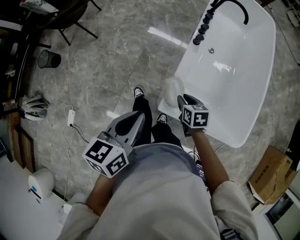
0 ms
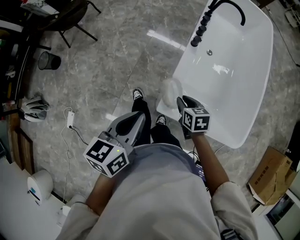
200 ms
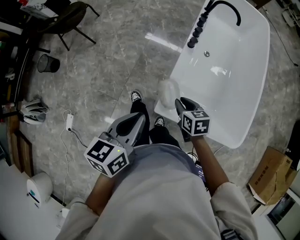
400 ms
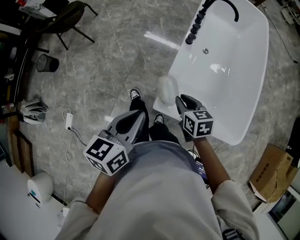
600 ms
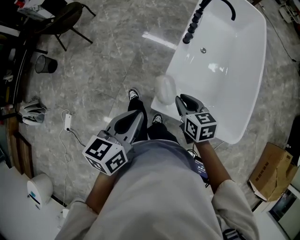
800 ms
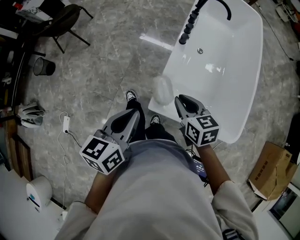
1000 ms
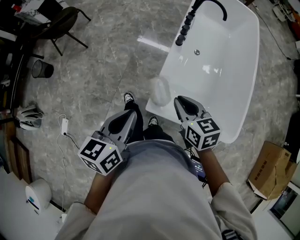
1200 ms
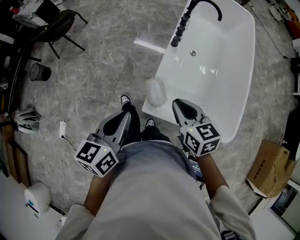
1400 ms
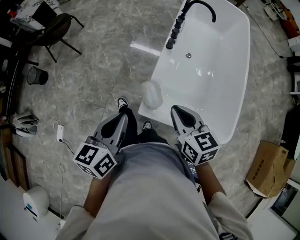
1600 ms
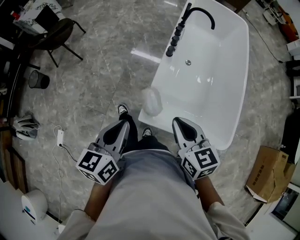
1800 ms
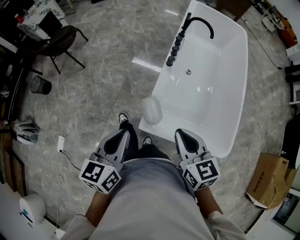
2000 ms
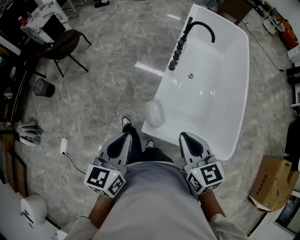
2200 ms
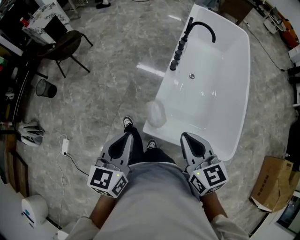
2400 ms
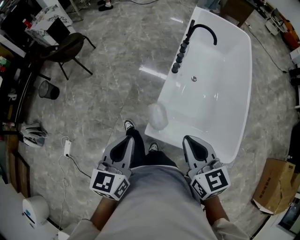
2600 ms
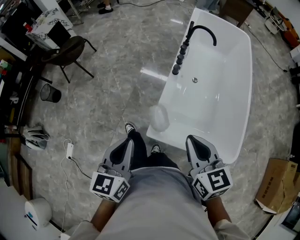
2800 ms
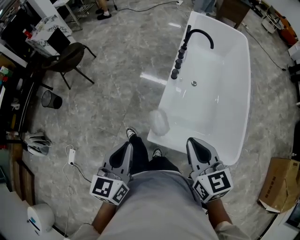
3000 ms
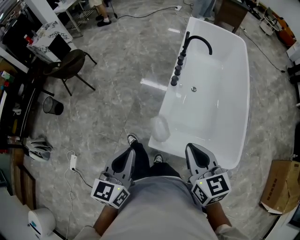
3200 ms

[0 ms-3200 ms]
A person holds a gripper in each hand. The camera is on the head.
0 ms to 1600 ms: The right gripper moves upward, approximately 20 cm, and swivels approximately 20 degrees.
1600 ms to 3200 ms: The left gripper shifts roughly 5 cm upward; the right gripper goes some 10 cm upward.

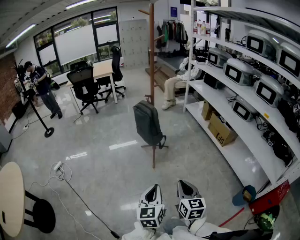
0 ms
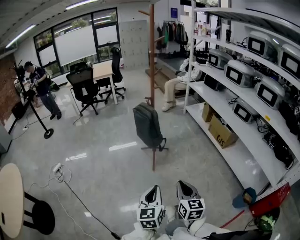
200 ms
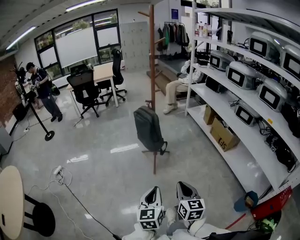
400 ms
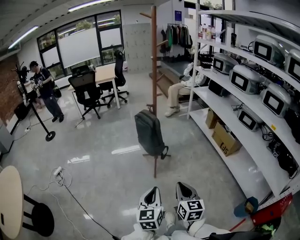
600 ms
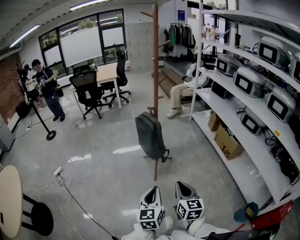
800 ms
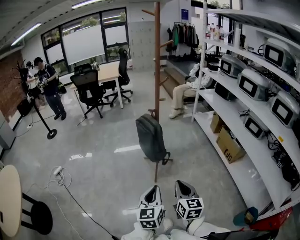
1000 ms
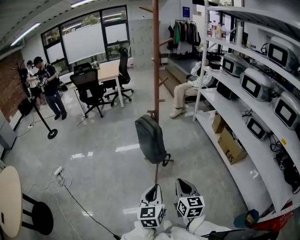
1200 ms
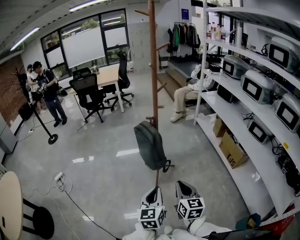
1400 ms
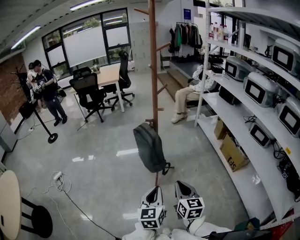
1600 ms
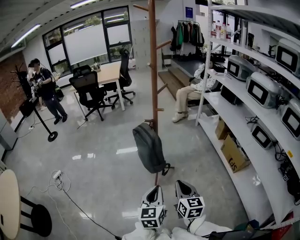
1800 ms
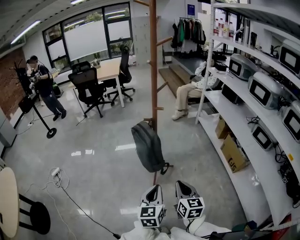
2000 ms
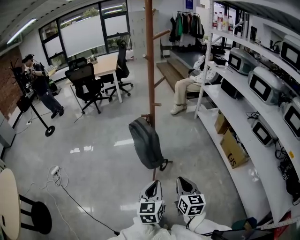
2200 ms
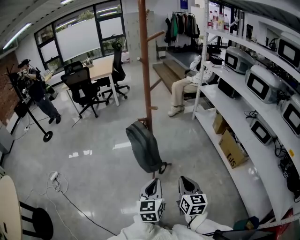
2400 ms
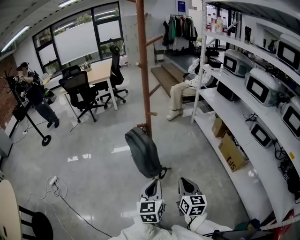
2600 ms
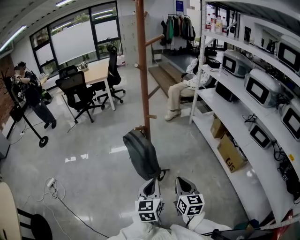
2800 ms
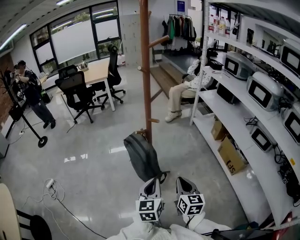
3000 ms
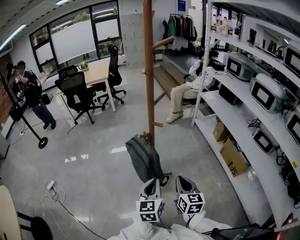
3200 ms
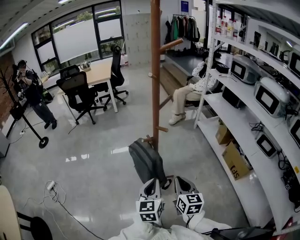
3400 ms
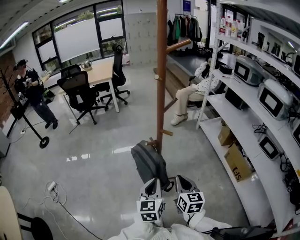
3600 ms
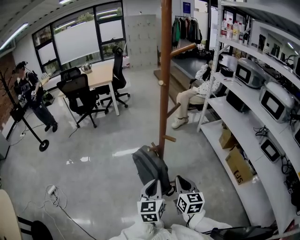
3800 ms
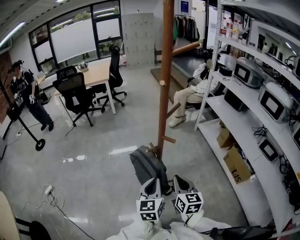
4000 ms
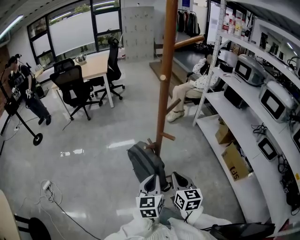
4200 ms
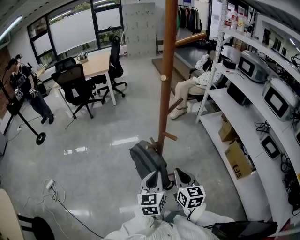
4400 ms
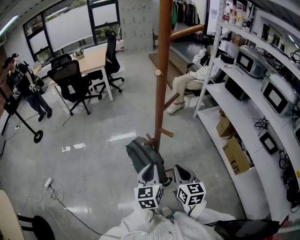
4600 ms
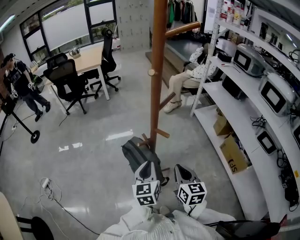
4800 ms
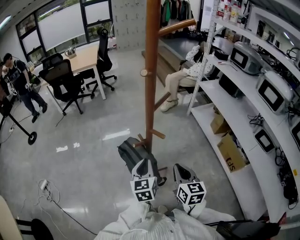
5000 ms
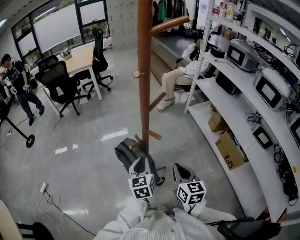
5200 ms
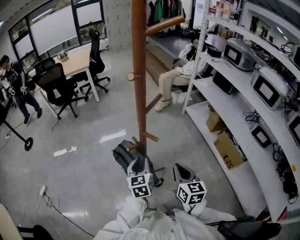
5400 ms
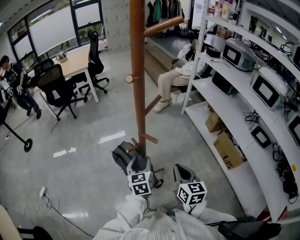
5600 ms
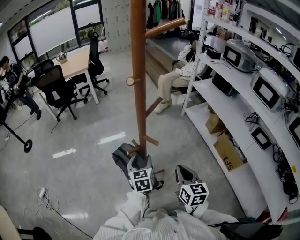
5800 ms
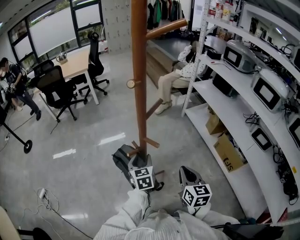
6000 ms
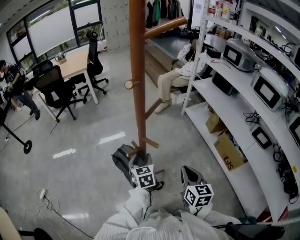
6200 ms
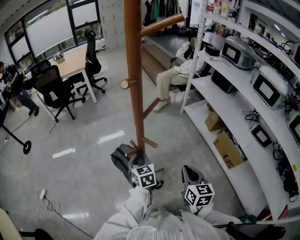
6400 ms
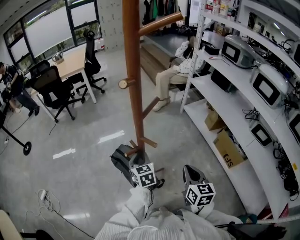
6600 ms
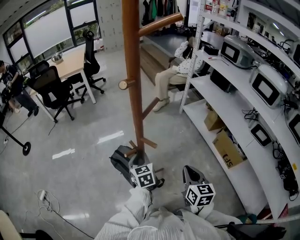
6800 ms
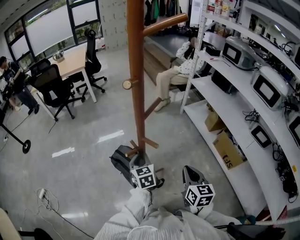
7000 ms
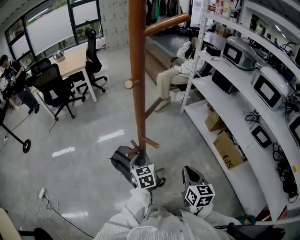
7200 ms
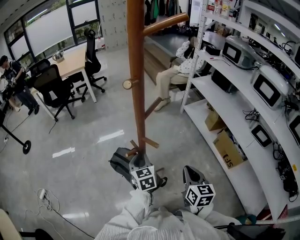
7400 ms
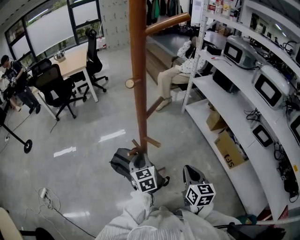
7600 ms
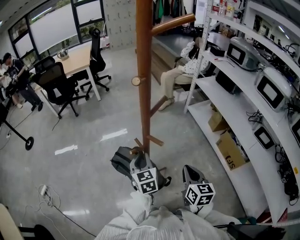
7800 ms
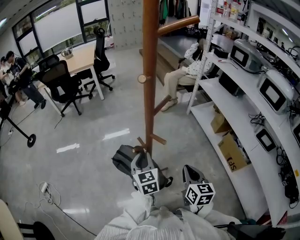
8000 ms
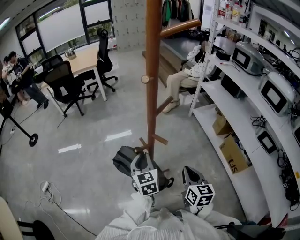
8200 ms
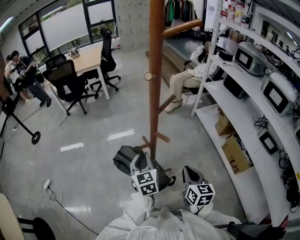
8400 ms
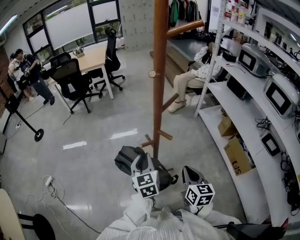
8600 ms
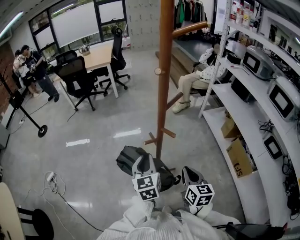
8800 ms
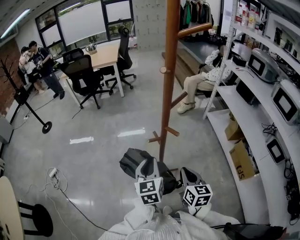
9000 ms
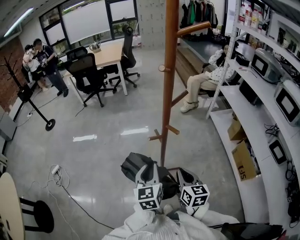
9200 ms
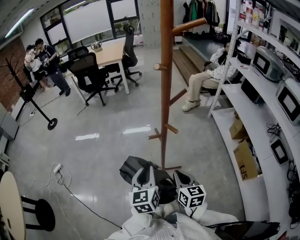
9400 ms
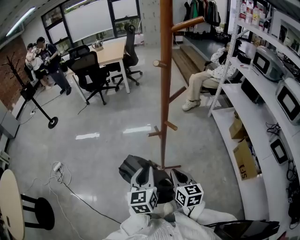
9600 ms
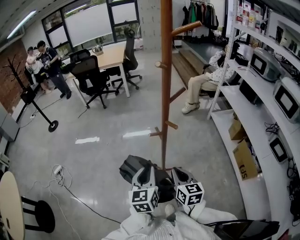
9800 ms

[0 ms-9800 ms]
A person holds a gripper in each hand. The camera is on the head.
0 ms to 1400 ms: Both grippers move forward, about 25 cm.
1400 ms to 2800 ms: Both grippers move forward, about 15 cm.
2800 ms to 4200 ms: The left gripper heads forward, covering some 15 cm, while the right gripper goes about 15 cm forward and to the left.
4200 ms to 5600 ms: The left gripper is displaced forward by about 10 cm, and opens its fingers. The right gripper shifts about 5 cm to the right.
5600 ms to 7000 ms: The left gripper ends up approximately 5 cm from where it was, and closes.
7000 ms to 8400 ms: The left gripper travels upward by roughly 5 cm.
8400 ms to 9800 ms: The left gripper shifts about 15 cm backward. The right gripper moves to the left, approximately 10 cm.

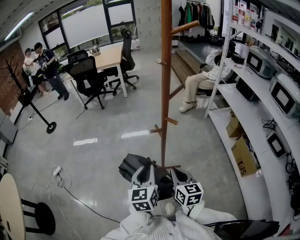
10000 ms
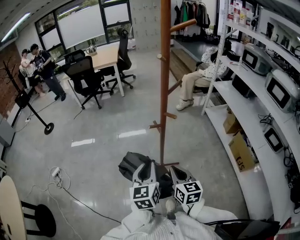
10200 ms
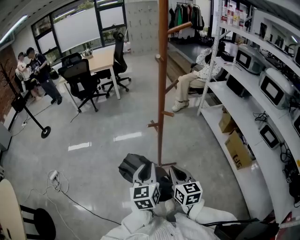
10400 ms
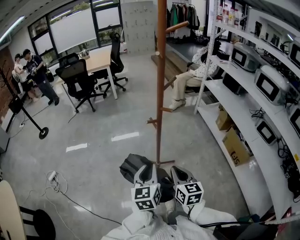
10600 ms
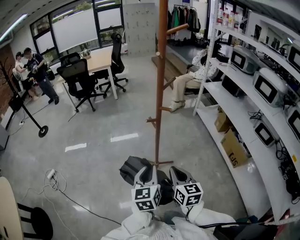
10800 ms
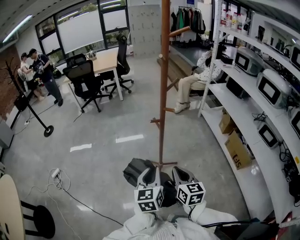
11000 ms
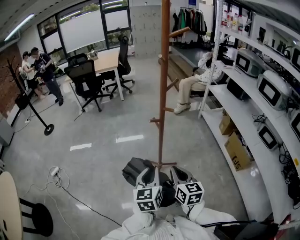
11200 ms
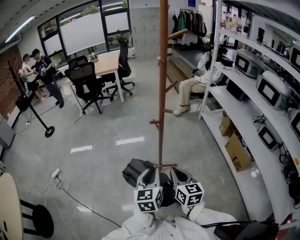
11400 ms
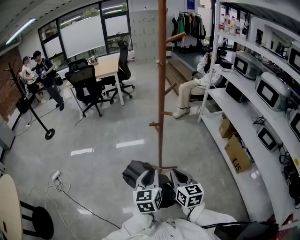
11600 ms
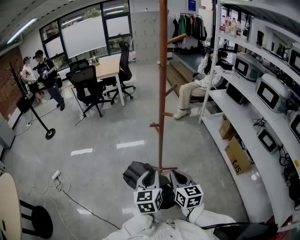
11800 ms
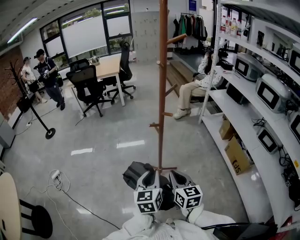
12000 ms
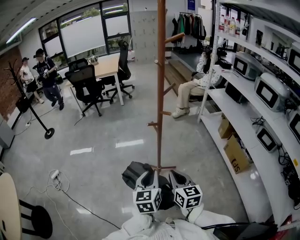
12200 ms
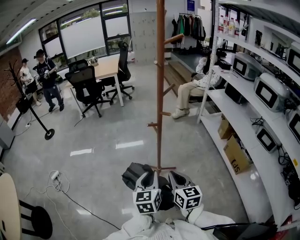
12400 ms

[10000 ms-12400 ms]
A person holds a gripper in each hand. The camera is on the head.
10000 ms to 11200 ms: The grippers both shift backward by approximately 10 cm.
11200 ms to 12400 ms: The grippers move only a little.

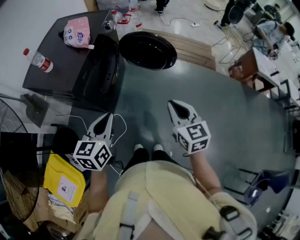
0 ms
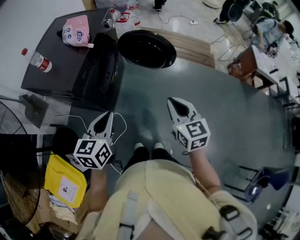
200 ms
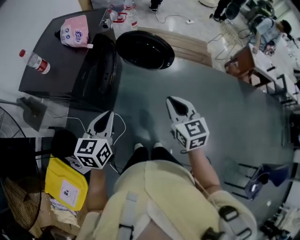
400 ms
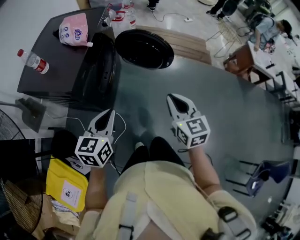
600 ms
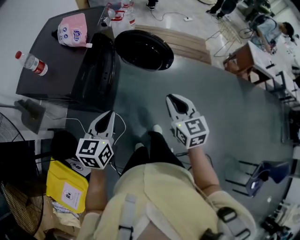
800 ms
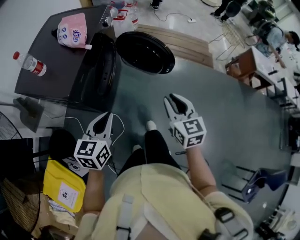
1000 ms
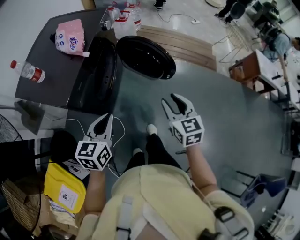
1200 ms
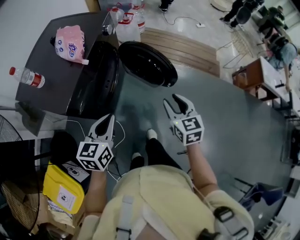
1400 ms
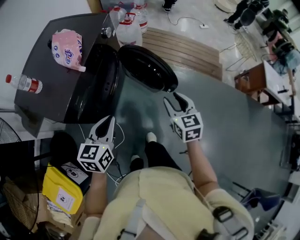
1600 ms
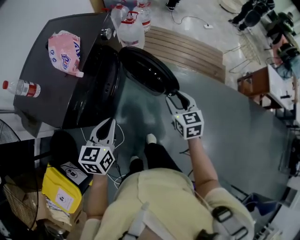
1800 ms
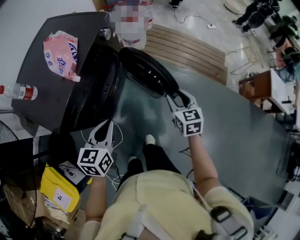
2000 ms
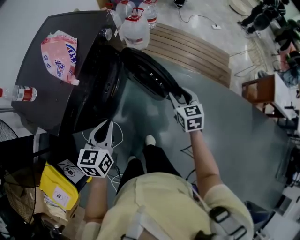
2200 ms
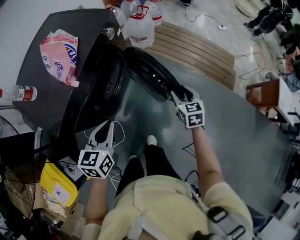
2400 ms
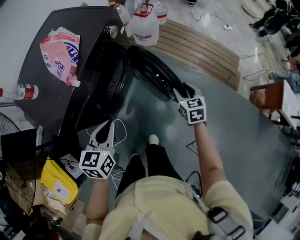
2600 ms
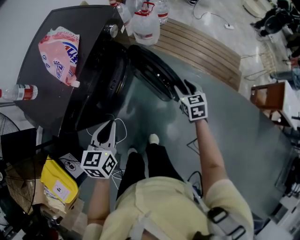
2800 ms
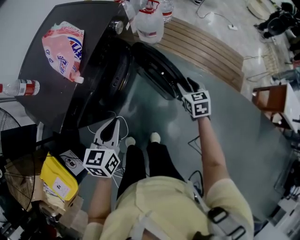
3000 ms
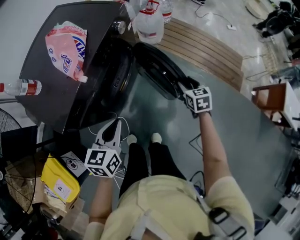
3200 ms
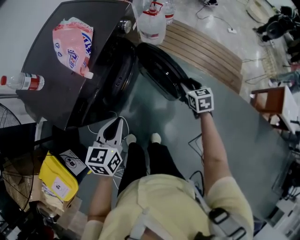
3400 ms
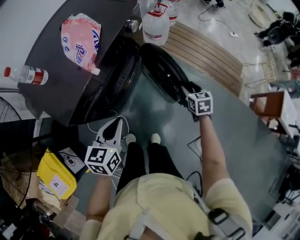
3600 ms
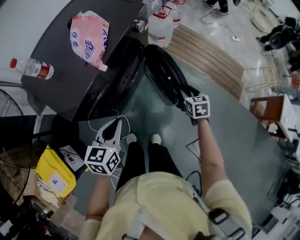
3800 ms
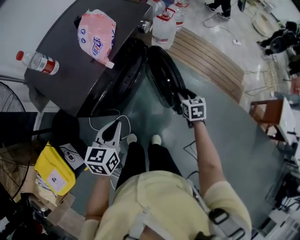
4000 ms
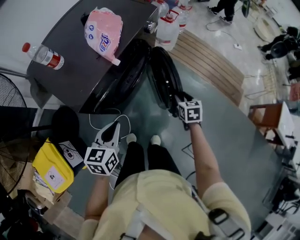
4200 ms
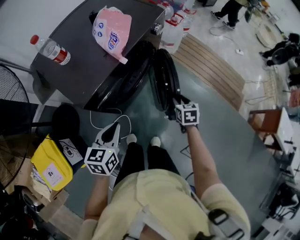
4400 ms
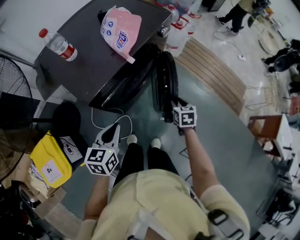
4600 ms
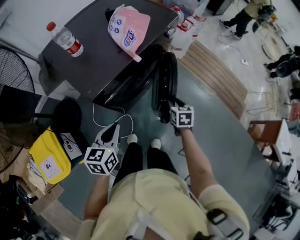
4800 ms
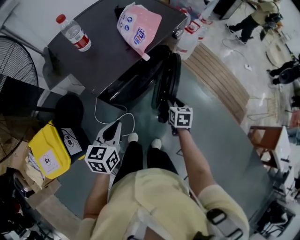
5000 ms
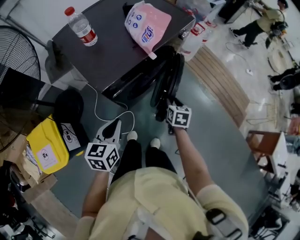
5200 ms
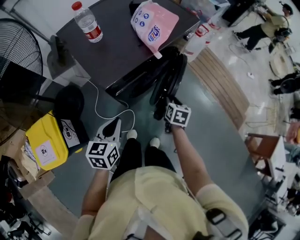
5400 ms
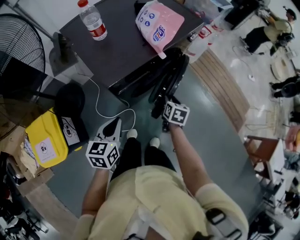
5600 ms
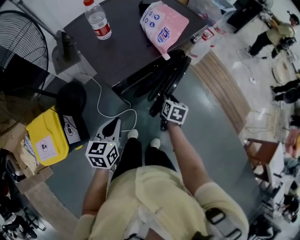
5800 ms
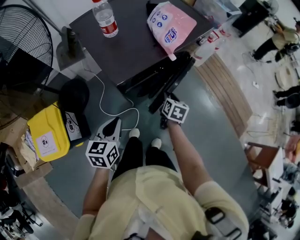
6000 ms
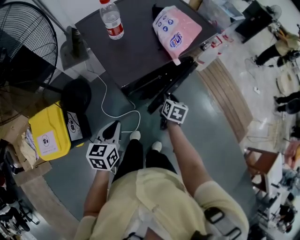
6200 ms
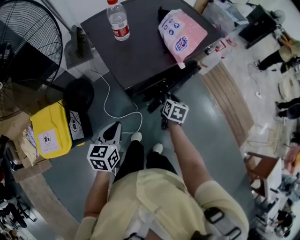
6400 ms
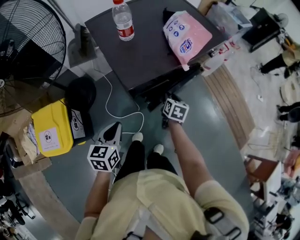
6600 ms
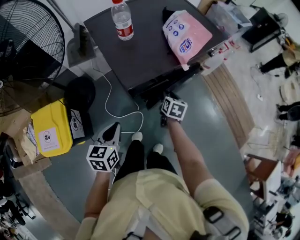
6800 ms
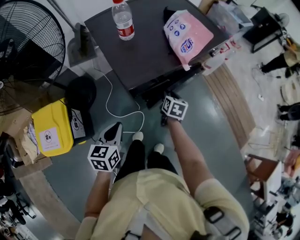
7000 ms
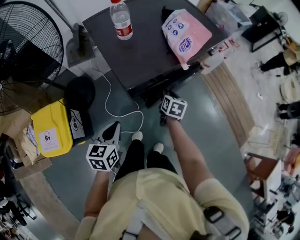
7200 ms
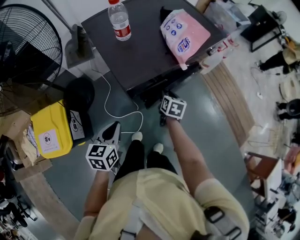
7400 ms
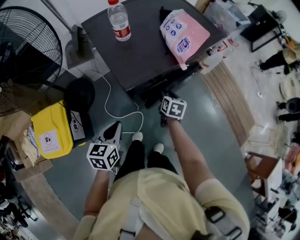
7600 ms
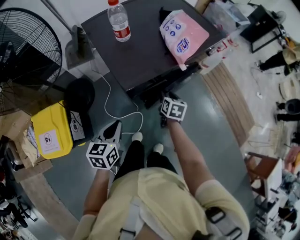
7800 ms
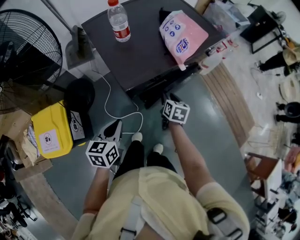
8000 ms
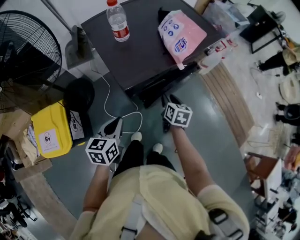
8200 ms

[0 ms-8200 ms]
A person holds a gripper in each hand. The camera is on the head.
0 ms to 1600 ms: The right gripper goes roughly 25 cm forward and downward, and opens its fingers; the left gripper goes roughly 15 cm forward.
1600 ms to 3200 ms: The right gripper moves forward and downward, about 25 cm, while the left gripper goes roughly 5 cm forward.
3200 ms to 5000 ms: Both grippers move to the left and backward, roughly 20 cm.
5000 ms to 6600 ms: The right gripper moves to the left, approximately 15 cm, while the left gripper heads to the left, covering approximately 10 cm.
6600 ms to 8200 ms: The grippers move only a little.
